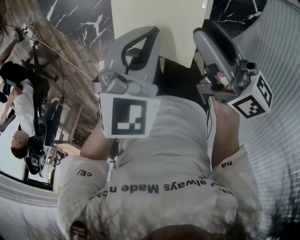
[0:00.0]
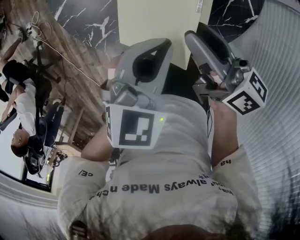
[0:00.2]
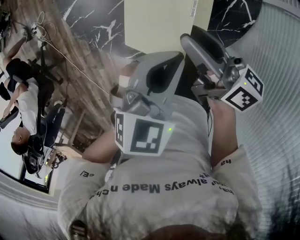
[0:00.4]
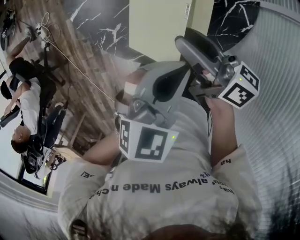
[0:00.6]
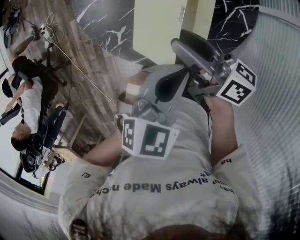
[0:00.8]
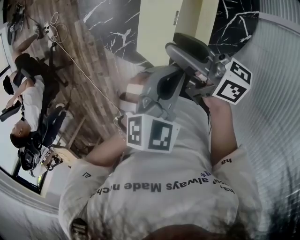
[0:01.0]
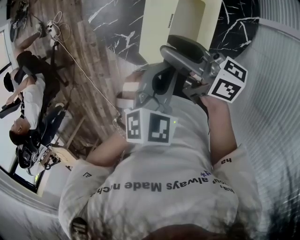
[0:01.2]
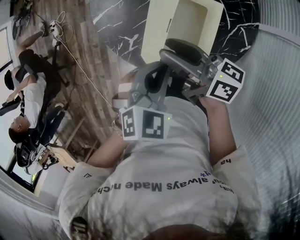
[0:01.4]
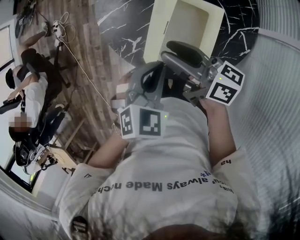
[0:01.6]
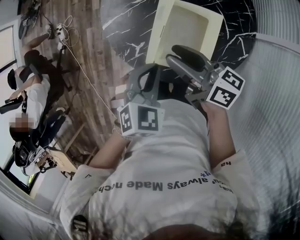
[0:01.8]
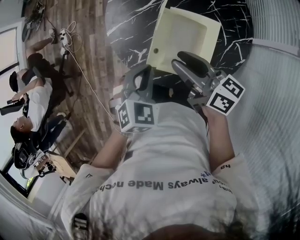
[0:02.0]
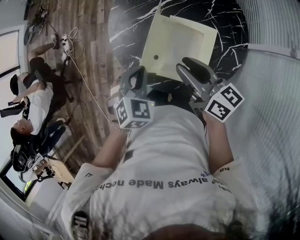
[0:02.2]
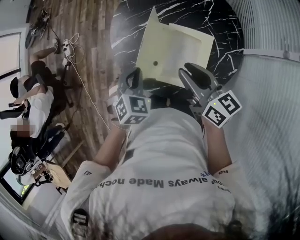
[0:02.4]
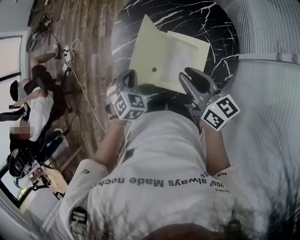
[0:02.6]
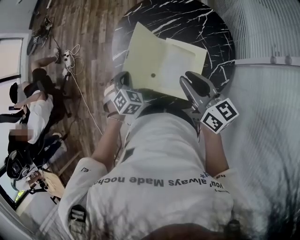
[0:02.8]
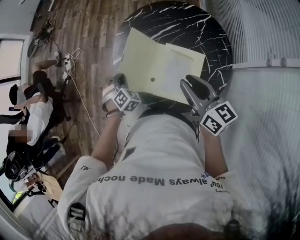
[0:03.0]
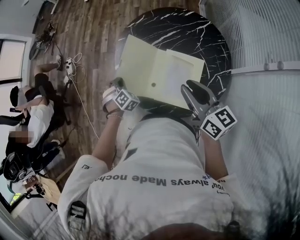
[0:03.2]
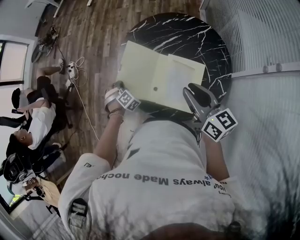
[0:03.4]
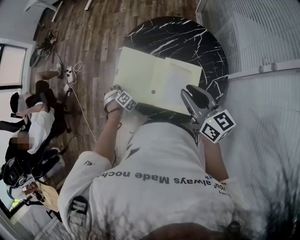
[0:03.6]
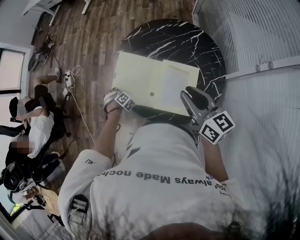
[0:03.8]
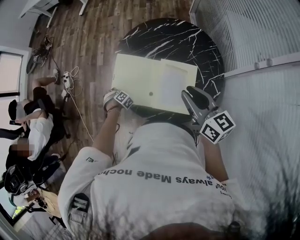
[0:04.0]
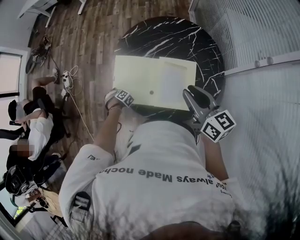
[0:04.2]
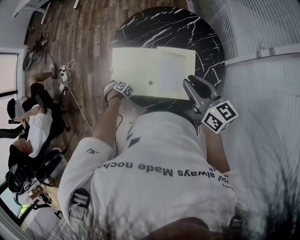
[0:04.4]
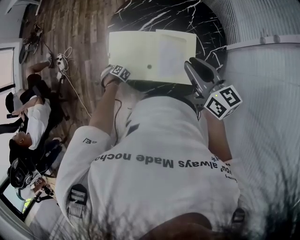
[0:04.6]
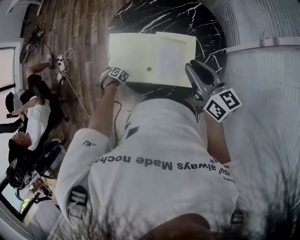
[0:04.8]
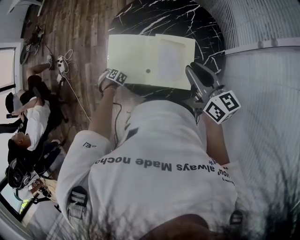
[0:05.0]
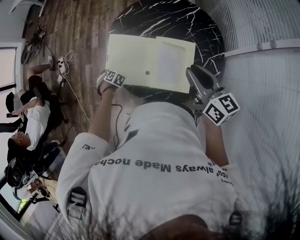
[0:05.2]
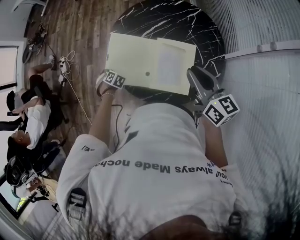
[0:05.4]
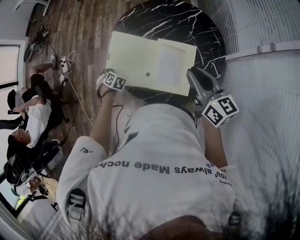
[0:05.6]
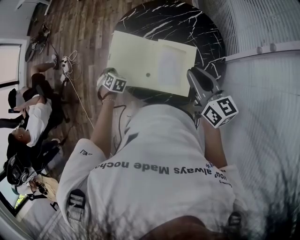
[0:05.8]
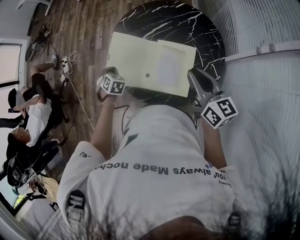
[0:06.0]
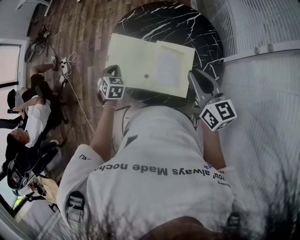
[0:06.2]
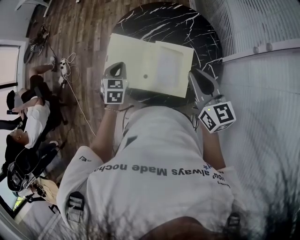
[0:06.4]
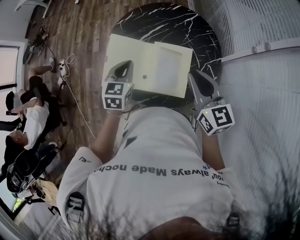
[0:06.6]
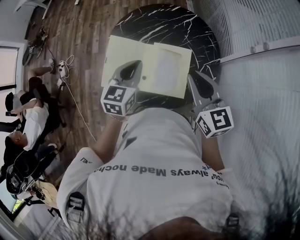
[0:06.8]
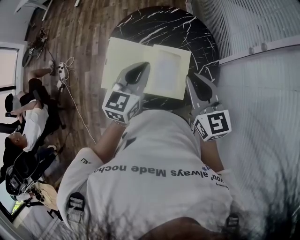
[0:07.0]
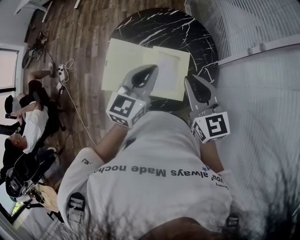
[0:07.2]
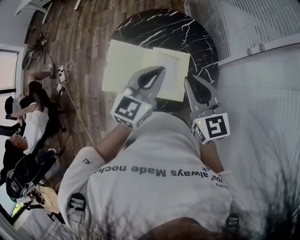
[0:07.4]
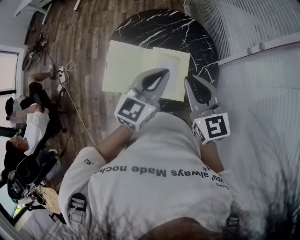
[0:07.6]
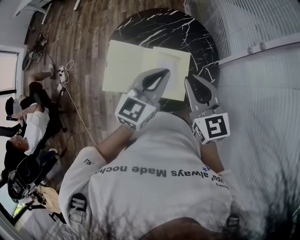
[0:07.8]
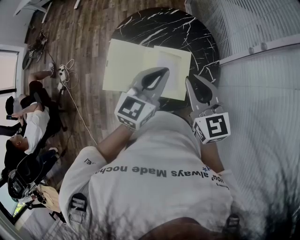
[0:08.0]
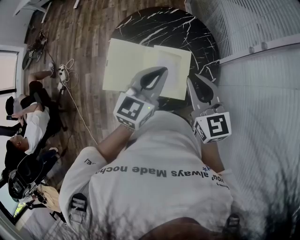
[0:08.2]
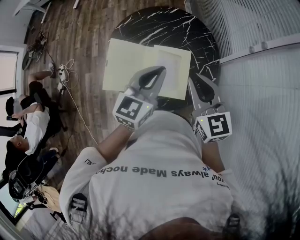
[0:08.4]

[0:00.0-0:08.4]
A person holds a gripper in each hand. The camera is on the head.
0:00.0 to 0:01.4: The left gripper moves upward, about 10 cm. The right gripper moves to the left and upward, some 15 cm, and rotates roughly 30 degrees.
0:01.4 to 0:02.8: The right gripper moves upward, roughly 10 cm, and turns by roughly 30 degrees. Meanwhile the left gripper heads to the left and forward, covering about 20 cm, and swivels some 30 degrees.
0:02.8 to 0:04.2: The left gripper goes about 25 cm downward and to the left, and swivels approximately 30 degrees.
0:04.2 to 0:05.6: The left gripper goes some 10 cm upward, and turns by about 20 degrees.
0:05.6 to 0:07.0: The right gripper heads upward, covering approximately 5 cm, and turns by about 20 degrees; the left gripper heads upward, covering roughly 30 cm, and tips its fingers upward by some 50 degrees.

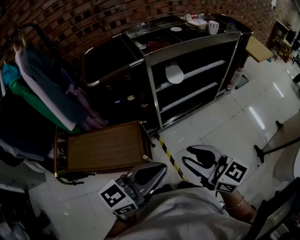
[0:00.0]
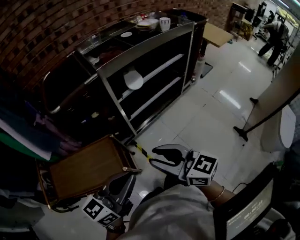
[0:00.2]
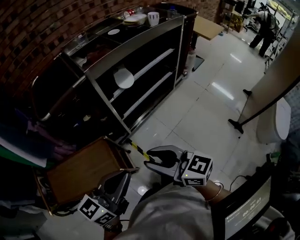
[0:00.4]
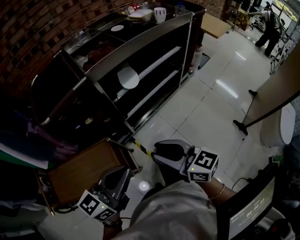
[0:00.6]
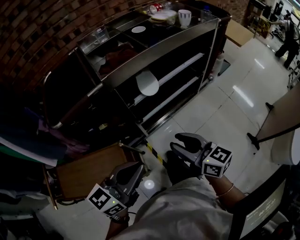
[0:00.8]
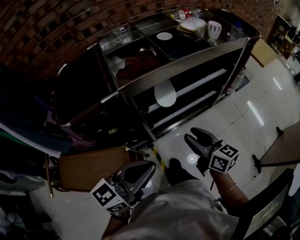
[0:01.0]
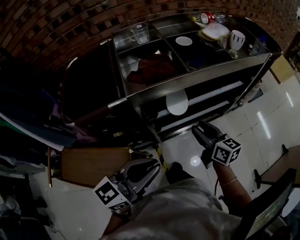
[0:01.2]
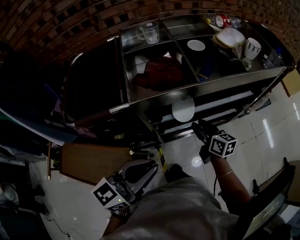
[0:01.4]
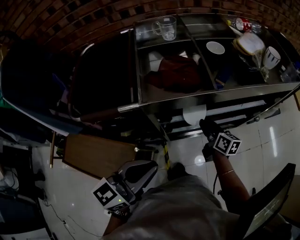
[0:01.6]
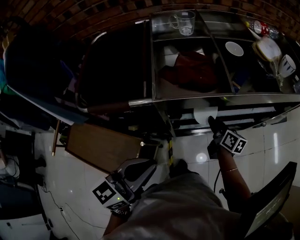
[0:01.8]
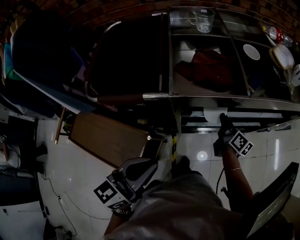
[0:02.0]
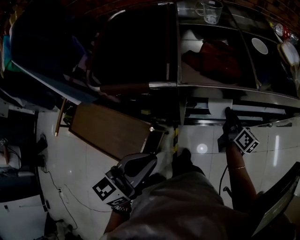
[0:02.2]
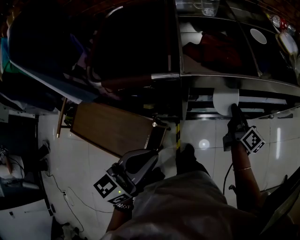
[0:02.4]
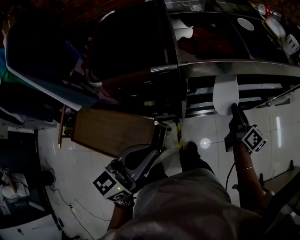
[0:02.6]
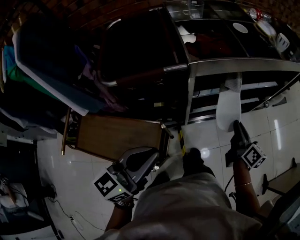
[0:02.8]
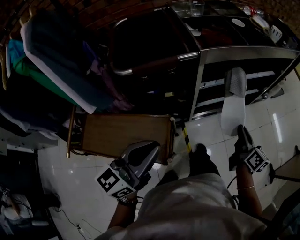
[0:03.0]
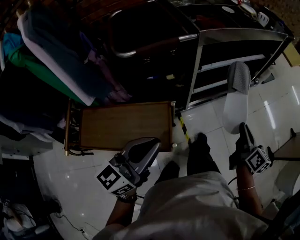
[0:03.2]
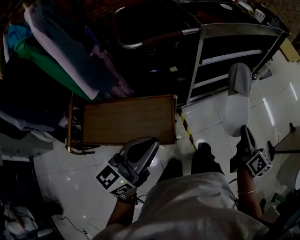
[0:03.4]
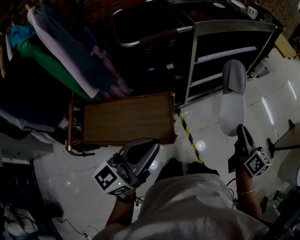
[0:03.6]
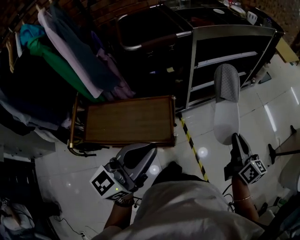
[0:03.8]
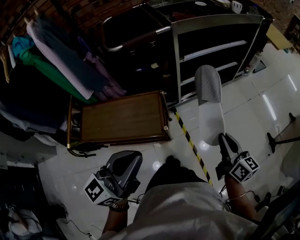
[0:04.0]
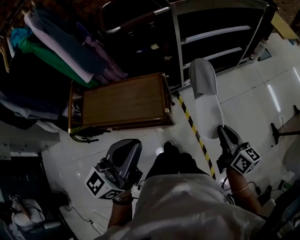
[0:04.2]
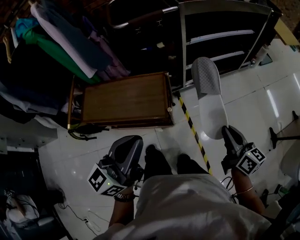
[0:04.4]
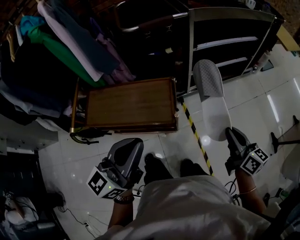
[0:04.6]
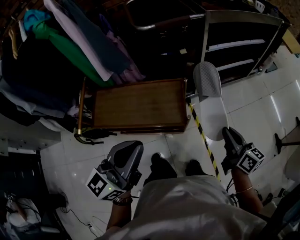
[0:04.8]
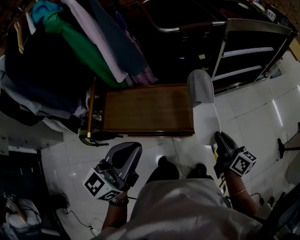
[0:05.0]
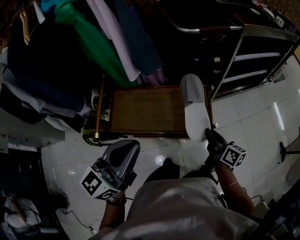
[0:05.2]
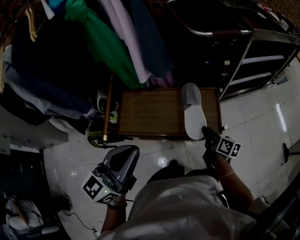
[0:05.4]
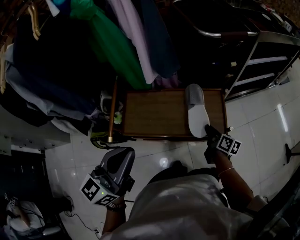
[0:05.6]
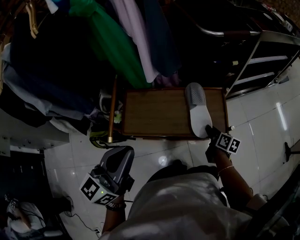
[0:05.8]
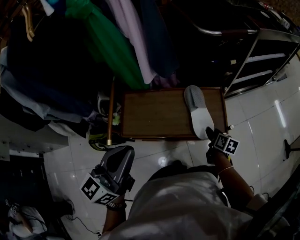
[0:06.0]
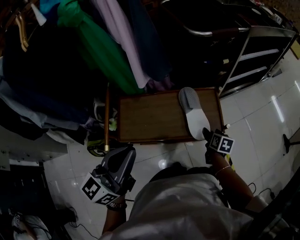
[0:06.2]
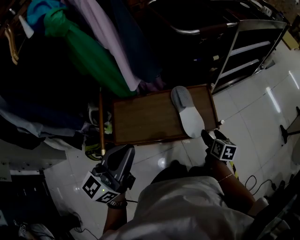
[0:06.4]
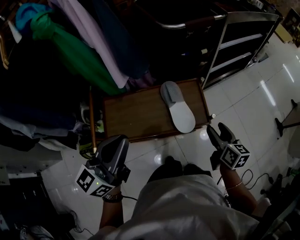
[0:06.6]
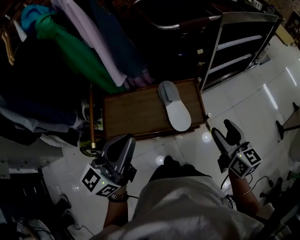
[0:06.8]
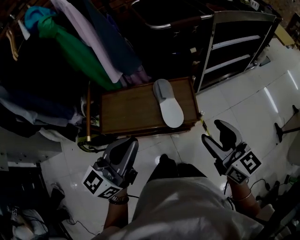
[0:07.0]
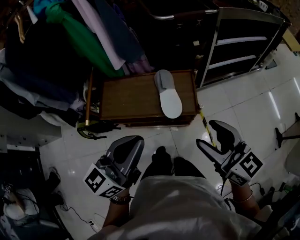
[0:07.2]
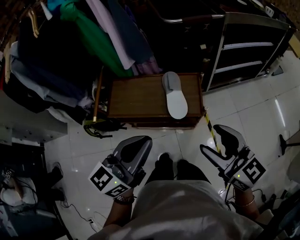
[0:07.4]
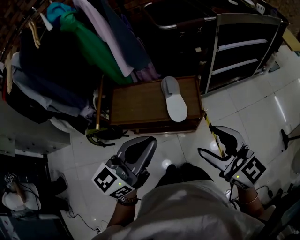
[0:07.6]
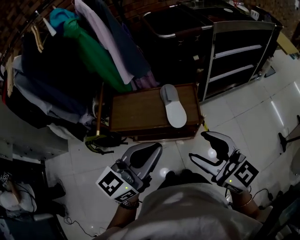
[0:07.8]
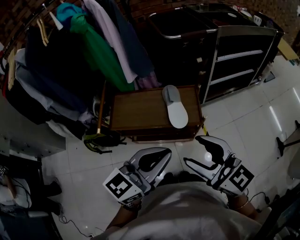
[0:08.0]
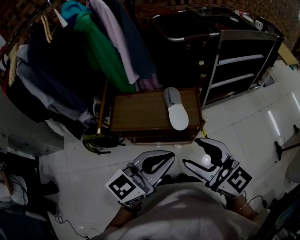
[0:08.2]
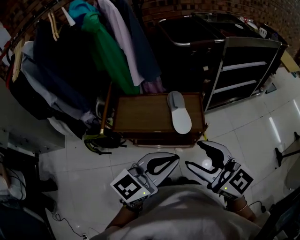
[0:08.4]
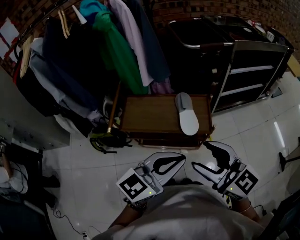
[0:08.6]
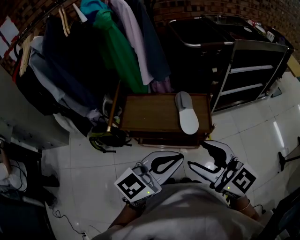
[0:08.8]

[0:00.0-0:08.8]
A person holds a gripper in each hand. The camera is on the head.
0:00.0 to 0:01.4: The left gripper is displaced forward by about 30 cm, and changes its angle by some 20 degrees. The right gripper shifts roughly 50 cm forward and downward, and changes its angle by roughly 30 degrees.
0:01.4 to 0:03.0: The right gripper moves backward, about 20 cm, turns by some 20 degrees, and closes up, while the left gripper travels to the left and backward by about 25 cm.
0:03.0 to 0:04.4: The grippers both shift backward by some 25 cm.
0:04.4 to 0:05.8: The right gripper moves to the left and downward, roughly 40 cm, and rotates about 30 degrees. The left gripper heads to the left, covering approximately 35 cm.
0:05.8 to 0:07.4: The left gripper travels to the right by approximately 20 cm. Meanwhile the right gripper moves upward and backward, some 40 cm, rotates around the line of its fingers by some 50 degrees, counterclockwise from behind, and opens.
0:07.4 to 0:08.8: The right gripper travels to the left and upward by roughly 15 cm.

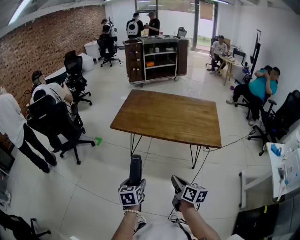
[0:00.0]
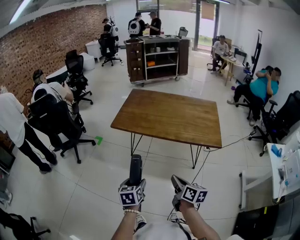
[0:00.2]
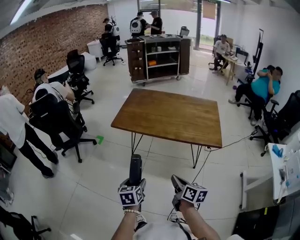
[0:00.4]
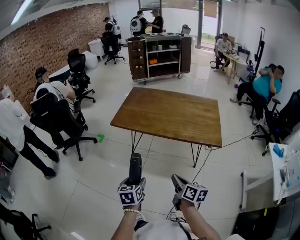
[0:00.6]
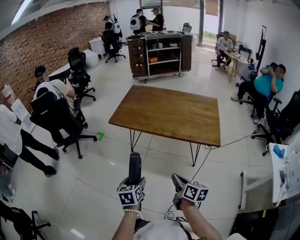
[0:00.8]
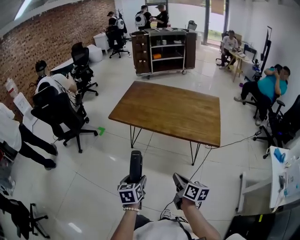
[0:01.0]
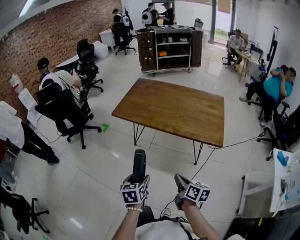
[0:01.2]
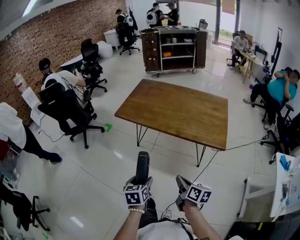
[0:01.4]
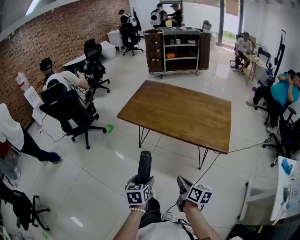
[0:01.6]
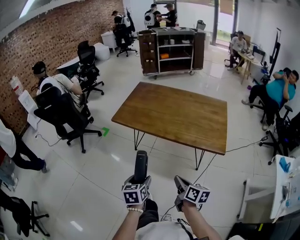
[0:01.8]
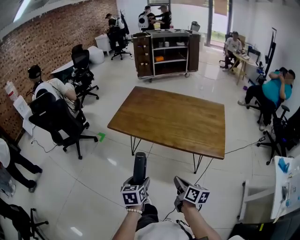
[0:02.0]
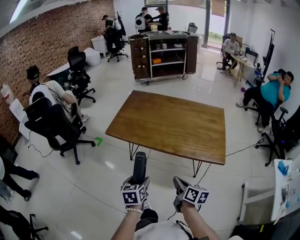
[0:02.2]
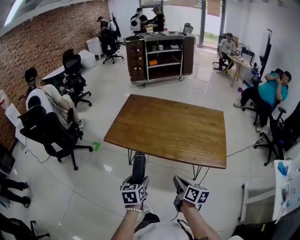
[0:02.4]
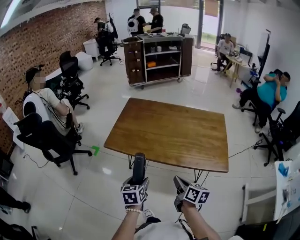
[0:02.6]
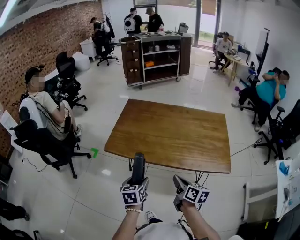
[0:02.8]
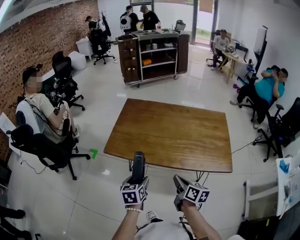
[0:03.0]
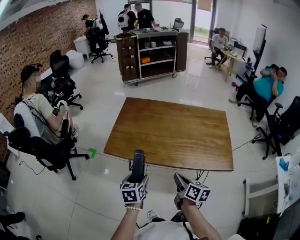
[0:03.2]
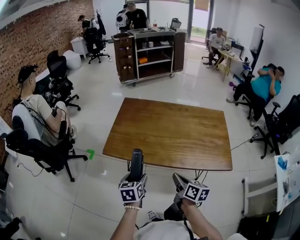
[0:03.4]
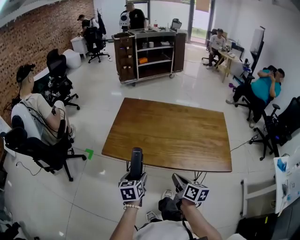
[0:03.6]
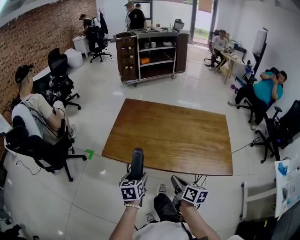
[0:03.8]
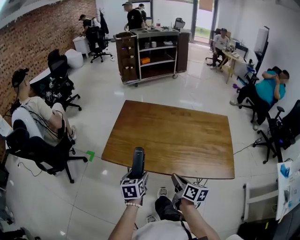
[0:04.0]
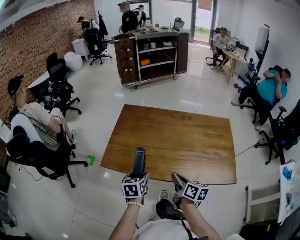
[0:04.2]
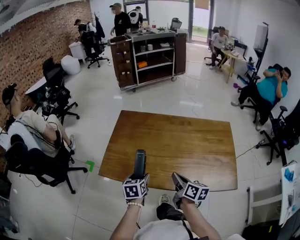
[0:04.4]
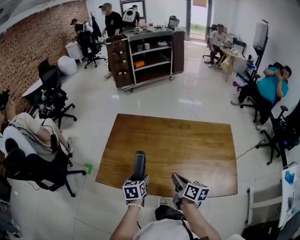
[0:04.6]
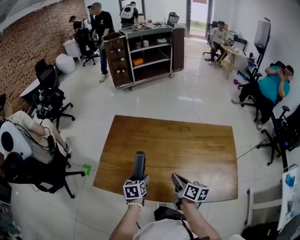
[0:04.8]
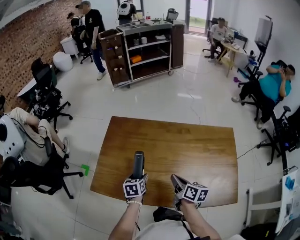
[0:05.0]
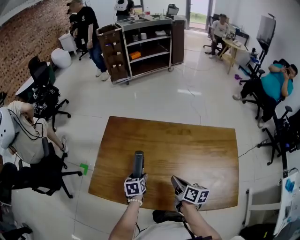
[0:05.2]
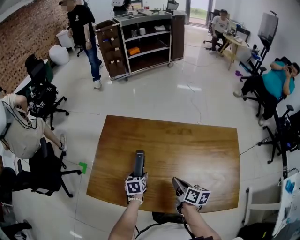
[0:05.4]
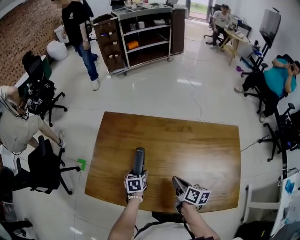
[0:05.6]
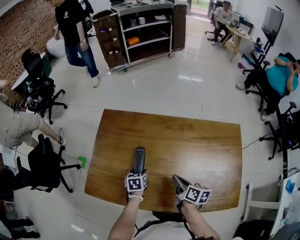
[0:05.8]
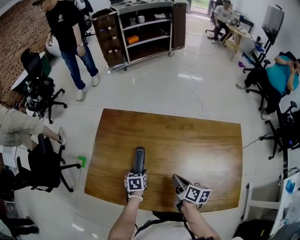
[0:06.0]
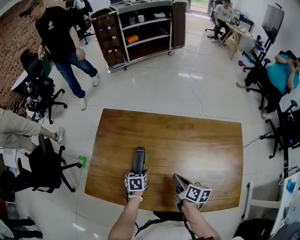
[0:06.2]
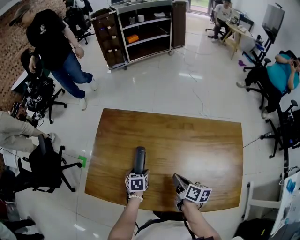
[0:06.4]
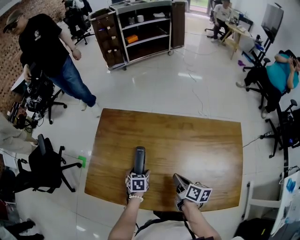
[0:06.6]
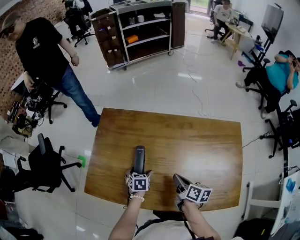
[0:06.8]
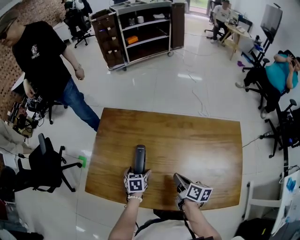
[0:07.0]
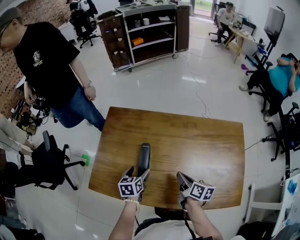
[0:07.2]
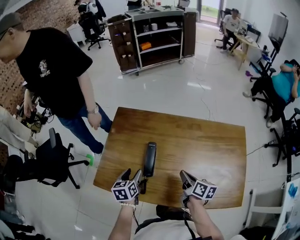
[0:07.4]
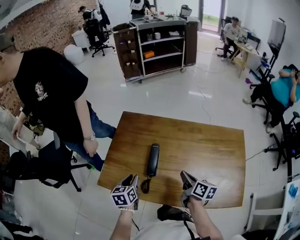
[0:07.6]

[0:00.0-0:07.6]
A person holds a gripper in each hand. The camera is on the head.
0:00.0 to 0:01.6: Both grippers move to the right, some 10 cm.
0:01.6 to 0:03.0: The grippers both shift forward by approximately 25 cm.
0:03.0 to 0:04.6: Both grippers travel together forward, approximately 20 cm.
0:04.6 to 0:06.0: Both grippers travel together downward and forward, approximately 15 cm.
0:06.0 to 0:07.6: The right gripper is displaced upward by about 5 cm. The left gripper is displaced upward, to the left and backward by roughly 20 cm, changes its angle by roughly 20 degrees, and closes its fingers.
